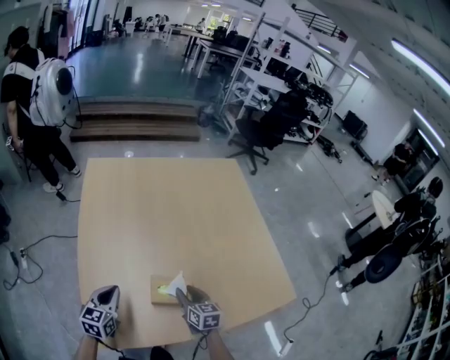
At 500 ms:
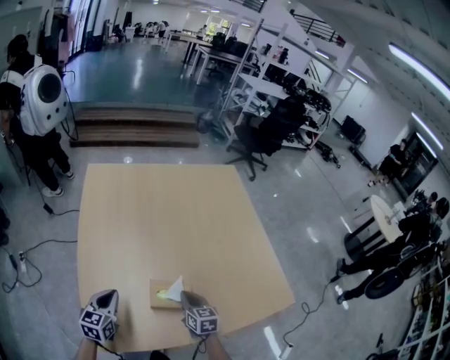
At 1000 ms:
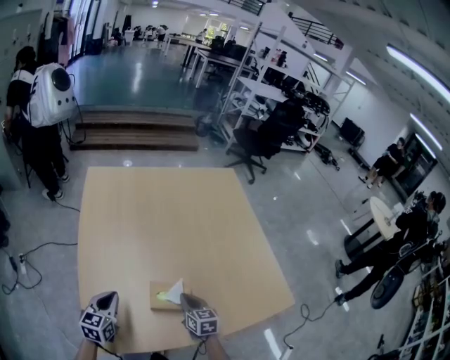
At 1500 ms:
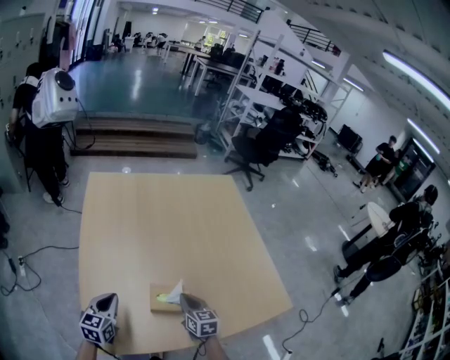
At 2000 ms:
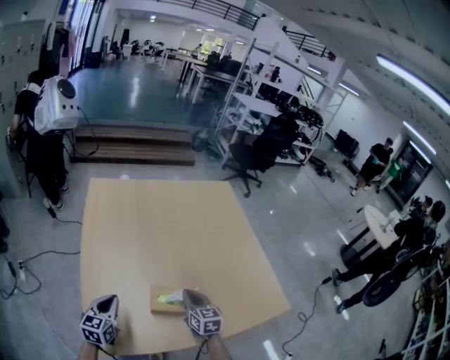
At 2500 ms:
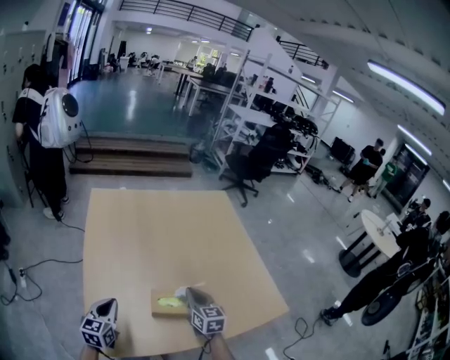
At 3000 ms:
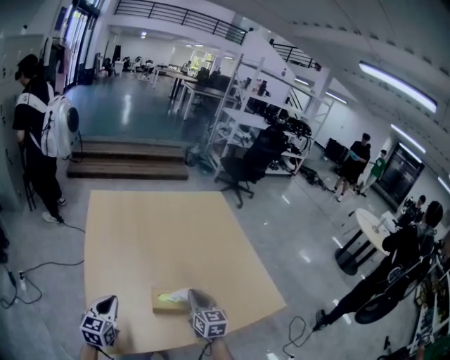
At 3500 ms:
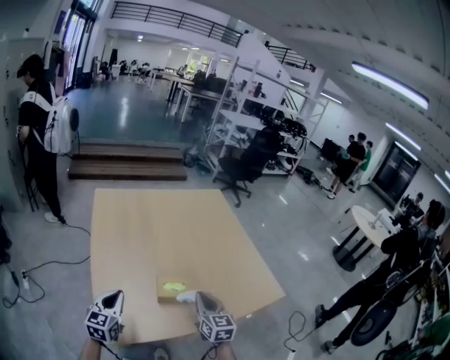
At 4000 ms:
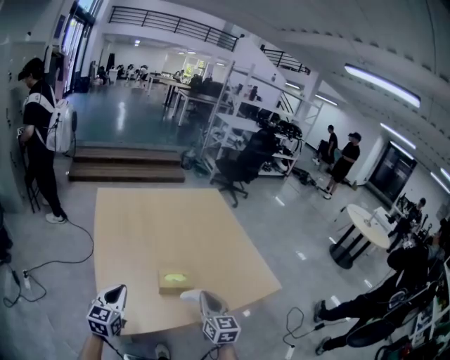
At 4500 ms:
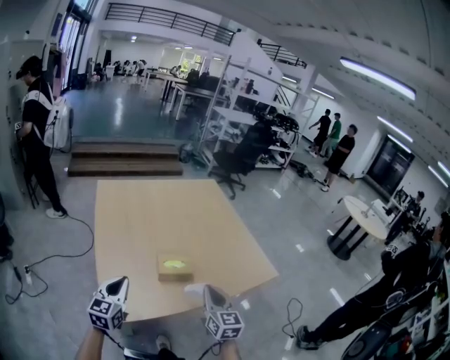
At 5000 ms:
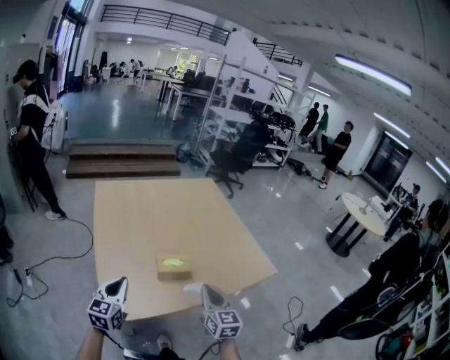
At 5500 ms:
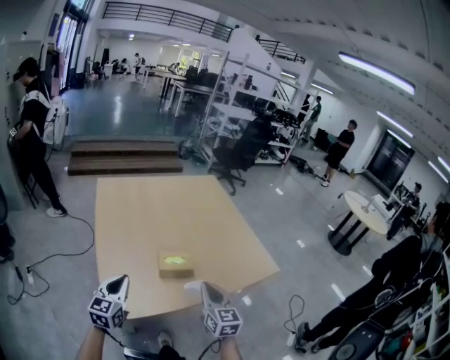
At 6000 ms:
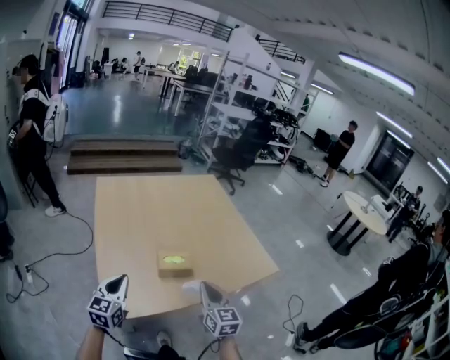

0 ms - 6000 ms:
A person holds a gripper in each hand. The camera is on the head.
0 ms - 2000 ms: The right gripper travels upward by approximately 5 cm, and closes its fingers.
2000 ms - 4000 ms: The grippers both shift backward and upward by approximately 20 cm.
4000 ms - 6000 ms: The right gripper shifts some 5 cm backward.

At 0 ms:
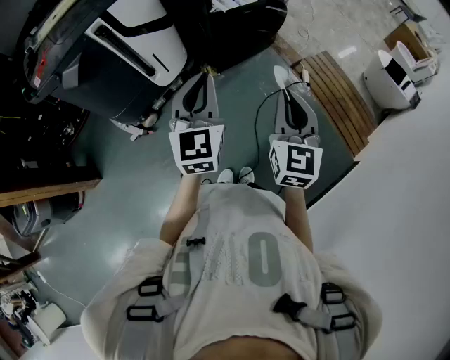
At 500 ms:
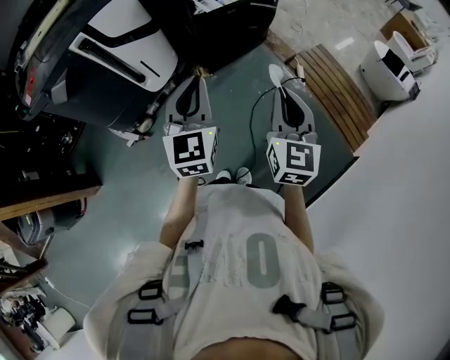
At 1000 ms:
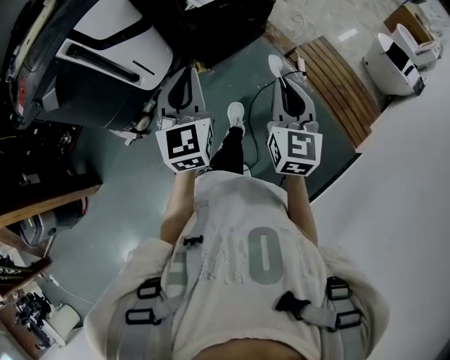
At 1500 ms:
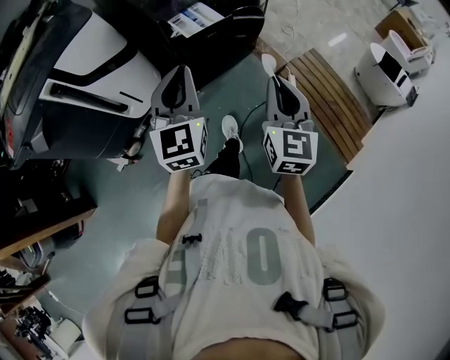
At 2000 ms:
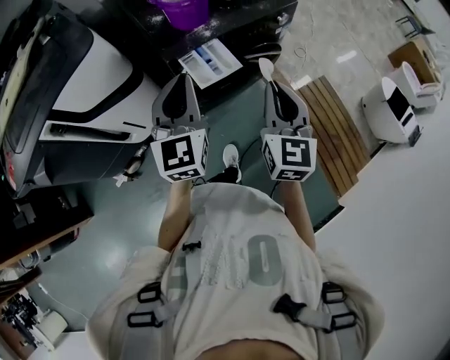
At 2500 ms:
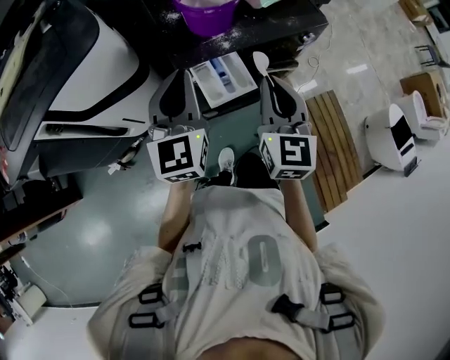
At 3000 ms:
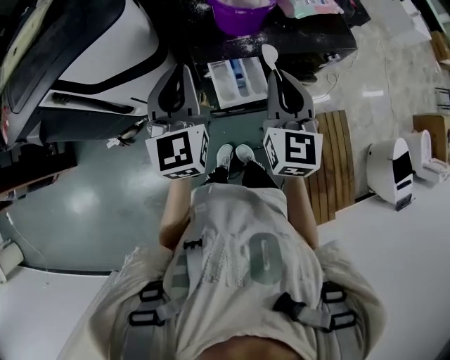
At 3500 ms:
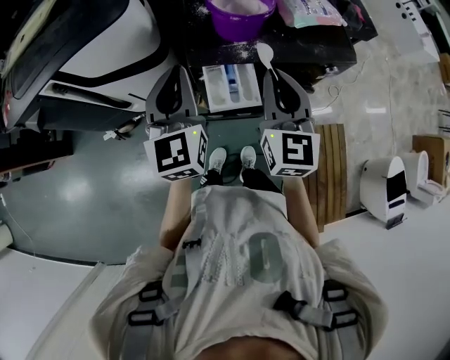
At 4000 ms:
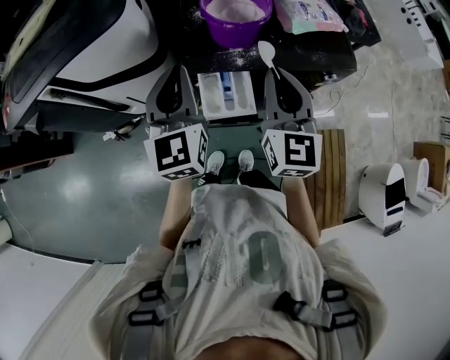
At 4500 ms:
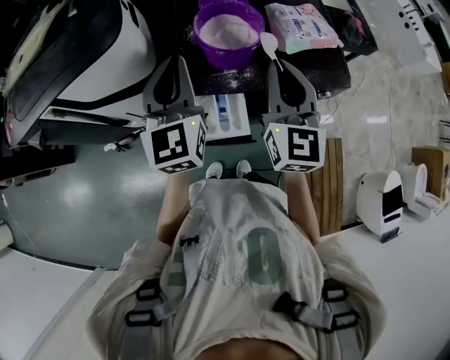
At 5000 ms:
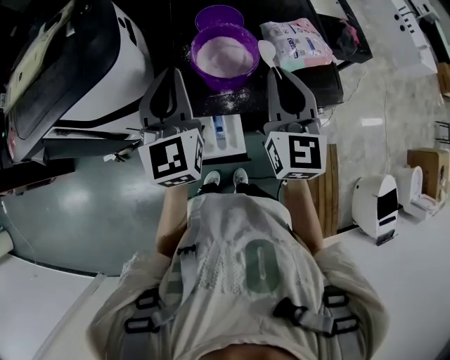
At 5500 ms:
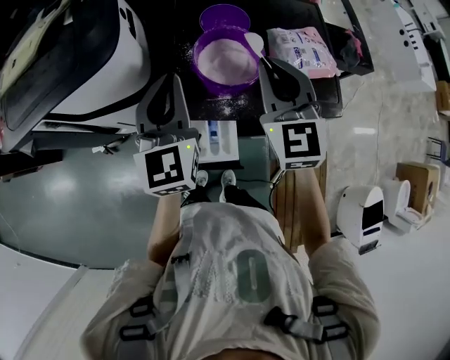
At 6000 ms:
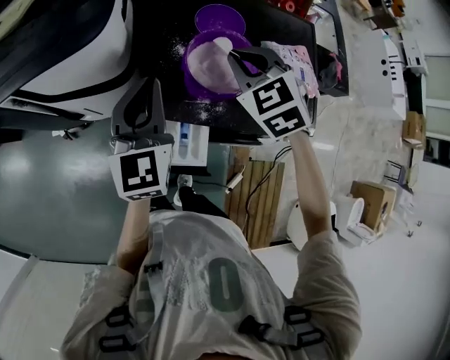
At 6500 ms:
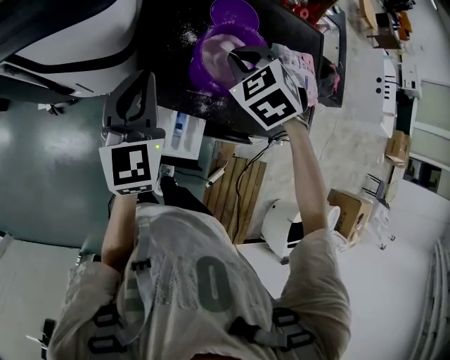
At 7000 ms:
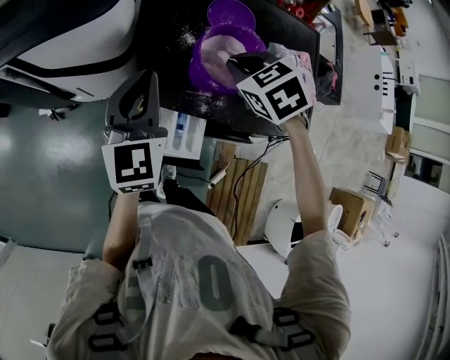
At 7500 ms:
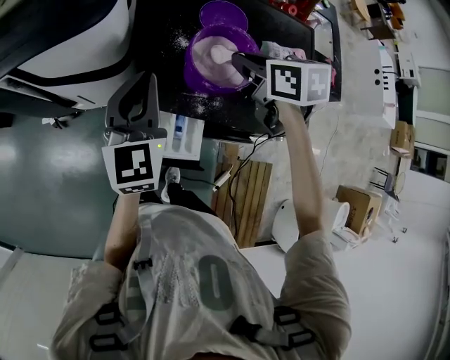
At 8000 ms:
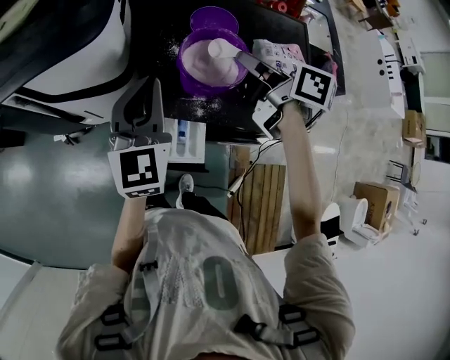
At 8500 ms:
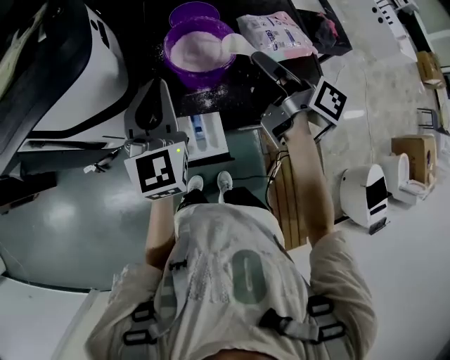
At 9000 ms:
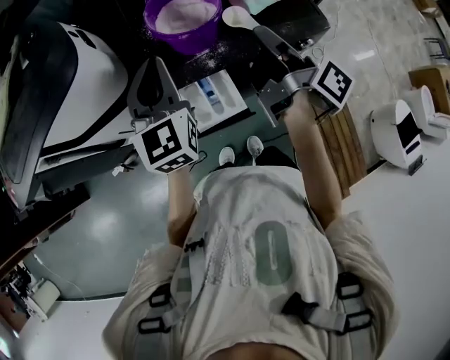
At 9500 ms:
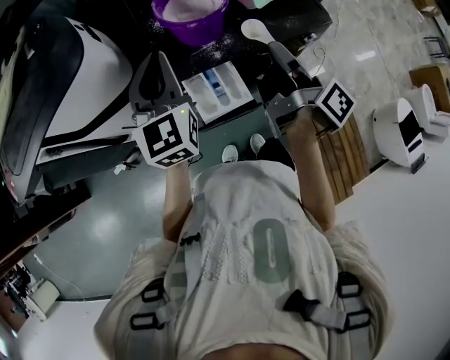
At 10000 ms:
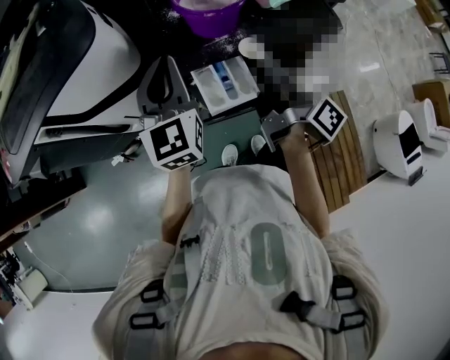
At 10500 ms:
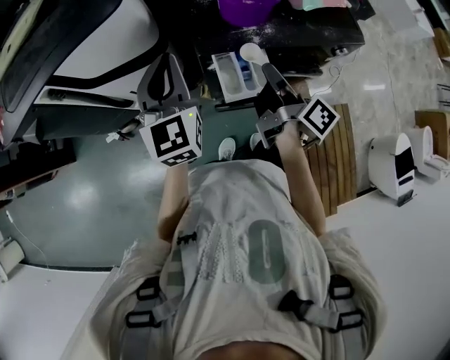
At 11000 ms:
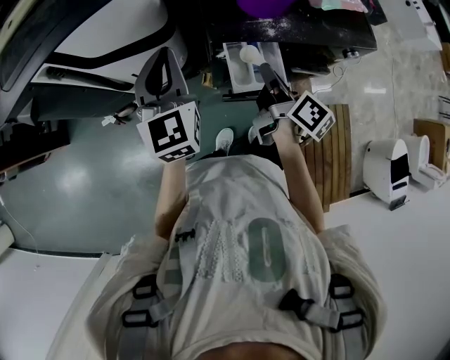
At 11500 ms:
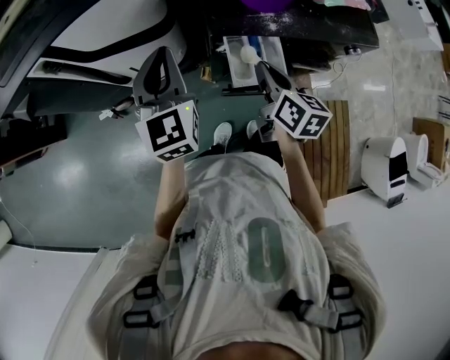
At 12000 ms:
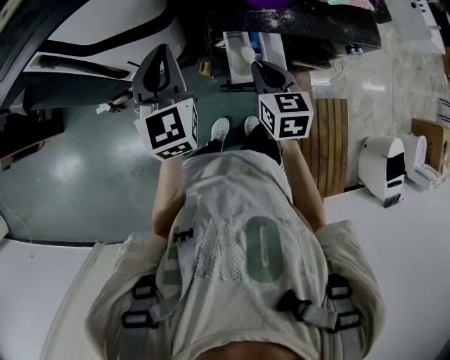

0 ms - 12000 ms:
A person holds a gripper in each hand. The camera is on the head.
0 ms - 2000 ms: Both grippers are carried forward, some 40 cm.
2000 ms - 4000 ms: The right gripper changes place by about 20 cm, and changes its angle by some 30 degrees; the left gripper ends up approximately 15 cm from where it was, and turns by roughly 30 degrees.
4000 ms - 6000 ms: The left gripper travels forward by some 10 cm, while the right gripper shifts approximately 20 cm forward, and angles its fingers downward, by some 40 degrees.
6000 ms - 8000 ms: The right gripper reaches about 5 cm downward, then returns, and twists approximately 80 degrees clockwise, seen from behind.
8000 ms - 10000 ms: The right gripper ends up approximately 25 cm from where it was, and swivels about 60 degrees; the left gripper shifts by roughly 10 cm.
10000 ms - 12000 ms: Both grippers move to the left and downward, some 15 cm. The right gripper rotates around the line of its fingers by some 80 degrees, counterclockwise from behind.

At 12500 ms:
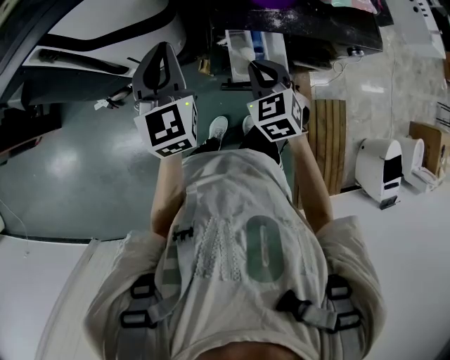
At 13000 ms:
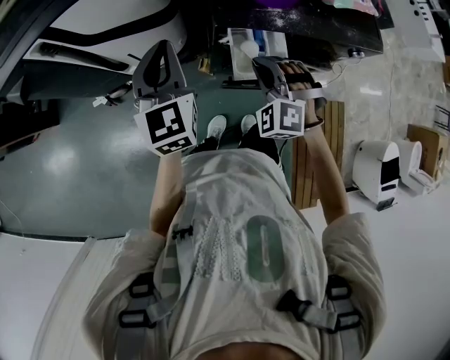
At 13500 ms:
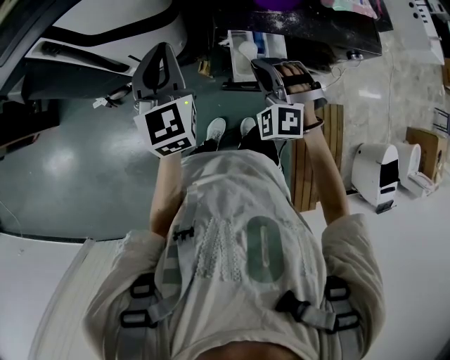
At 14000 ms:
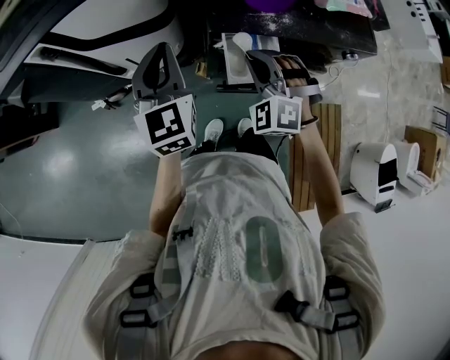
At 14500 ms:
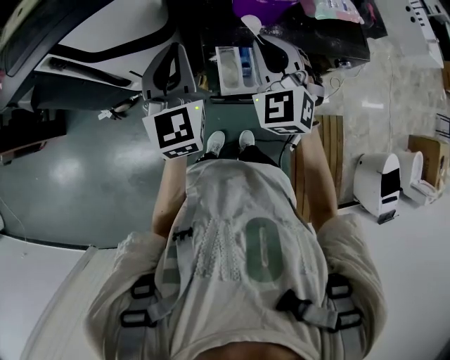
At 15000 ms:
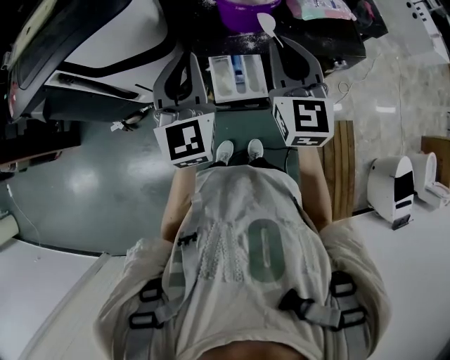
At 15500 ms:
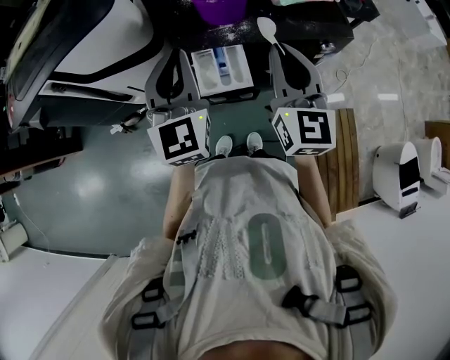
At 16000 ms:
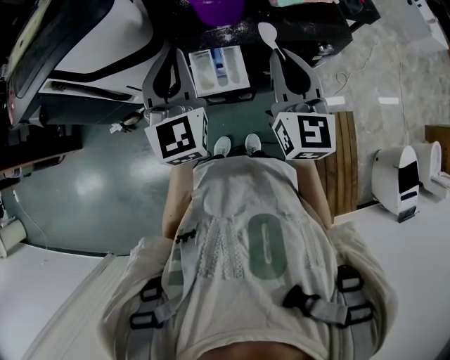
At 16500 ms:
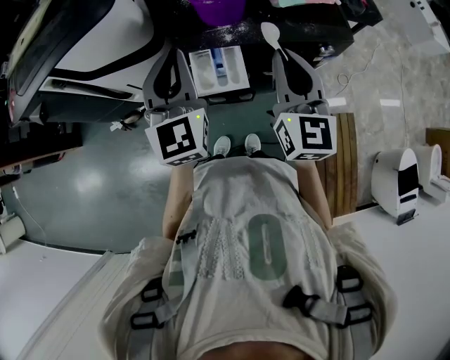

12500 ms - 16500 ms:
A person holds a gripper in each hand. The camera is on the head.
12500 ms - 14500 ms: The right gripper is displaced upward by about 15 cm, and turns by about 30 degrees; the left gripper travels upward and to the right by about 10 cm.
14500 ms - 16500 ms: The right gripper heads to the right and backward, covering about 15 cm, and rotates around the line of its fingers by some 40 degrees, clockwise from behind; the left gripper is displaced to the right by about 10 cm.

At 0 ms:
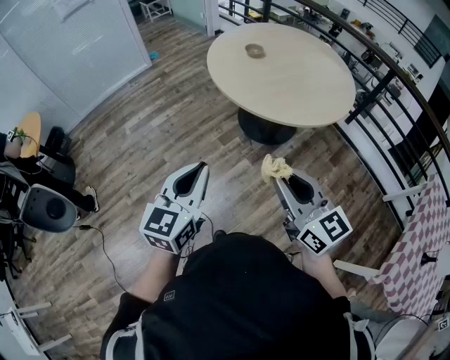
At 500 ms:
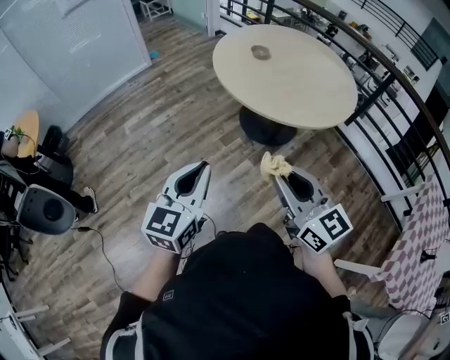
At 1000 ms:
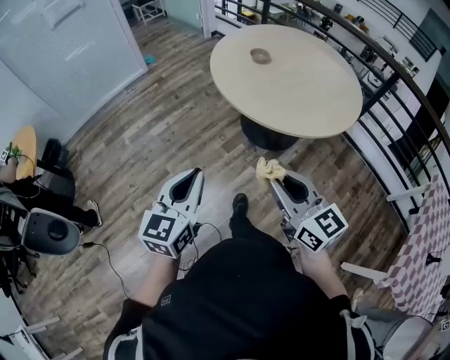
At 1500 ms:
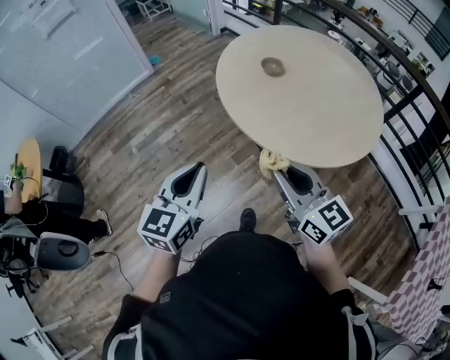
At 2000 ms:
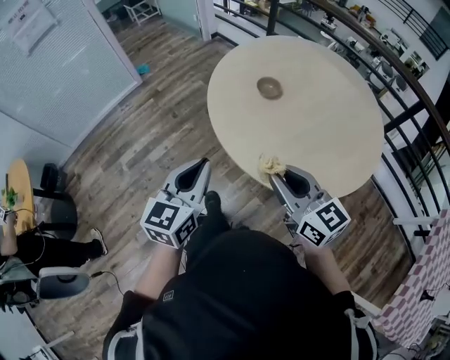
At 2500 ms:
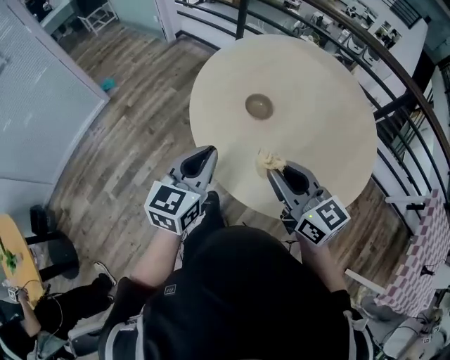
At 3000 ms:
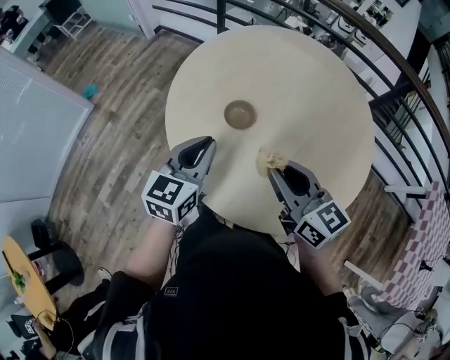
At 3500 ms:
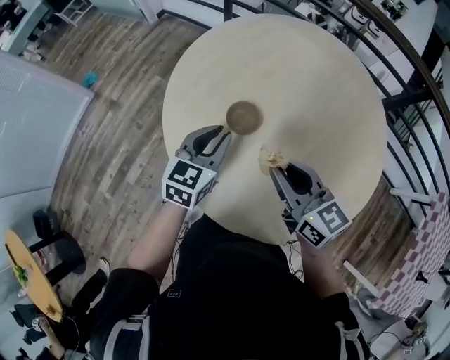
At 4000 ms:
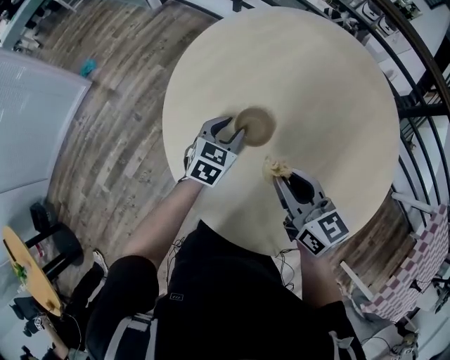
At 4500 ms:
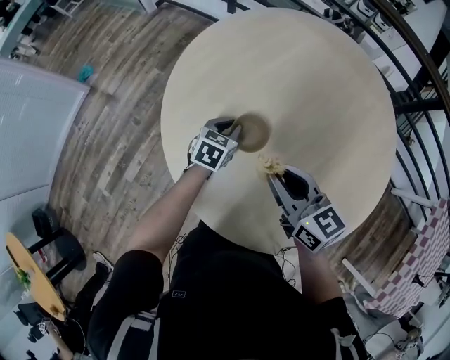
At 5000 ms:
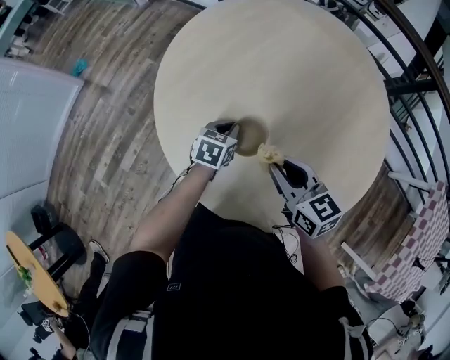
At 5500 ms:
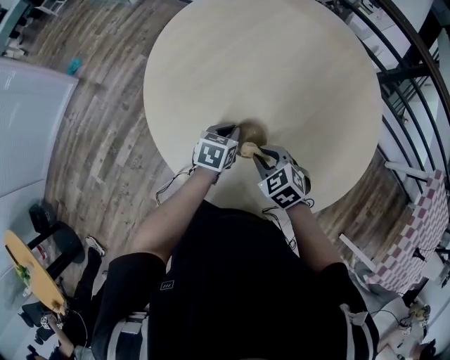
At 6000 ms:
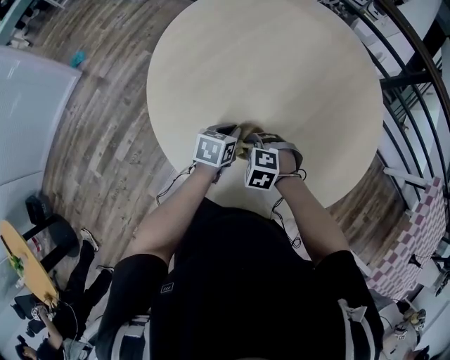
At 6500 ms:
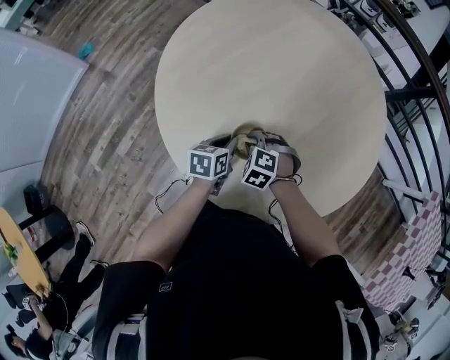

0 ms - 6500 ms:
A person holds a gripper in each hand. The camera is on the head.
0 ms - 2000 ms: The two grippers travel together, forward, approximately 40 cm.
2000 ms - 4500 ms: The right gripper travels forward by about 35 cm, and turns by about 20 degrees. The left gripper goes about 60 cm forward and downward, and angles its fingers downward, by approximately 30 degrees.
4500 ms - 6500 ms: The left gripper travels backward by roughly 15 cm, and changes its angle by some 30 degrees, while the right gripper shifts some 20 cm downward, and tips its fingers downward by about 50 degrees.
